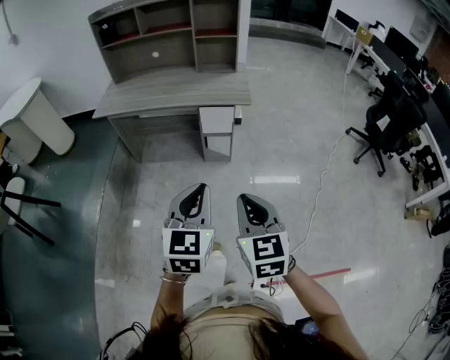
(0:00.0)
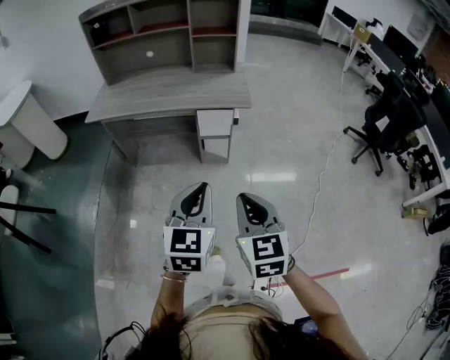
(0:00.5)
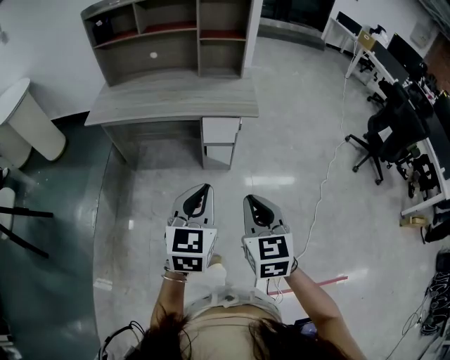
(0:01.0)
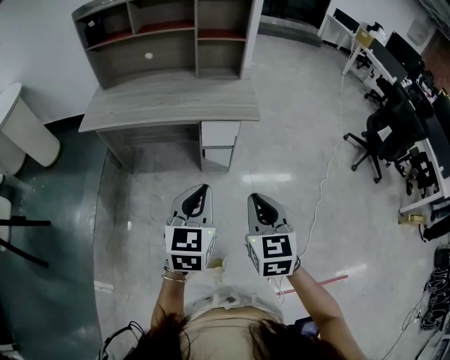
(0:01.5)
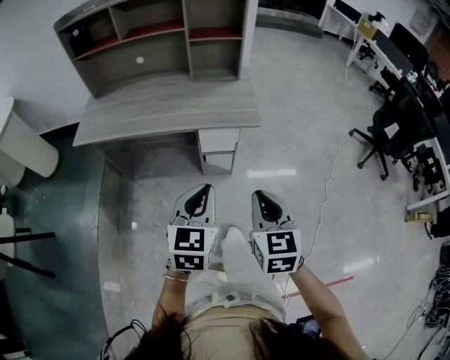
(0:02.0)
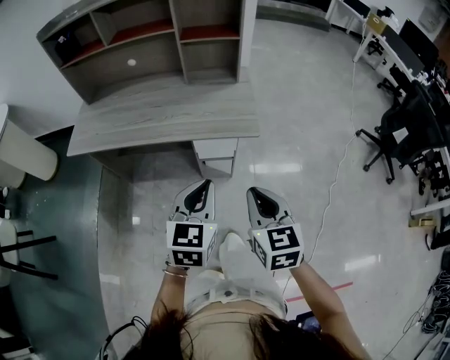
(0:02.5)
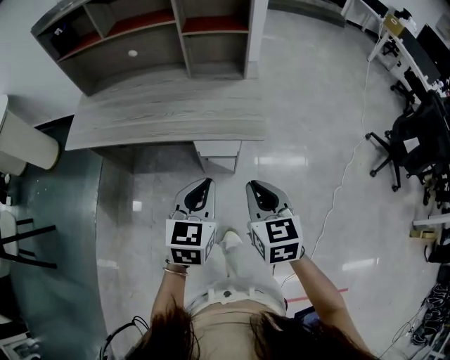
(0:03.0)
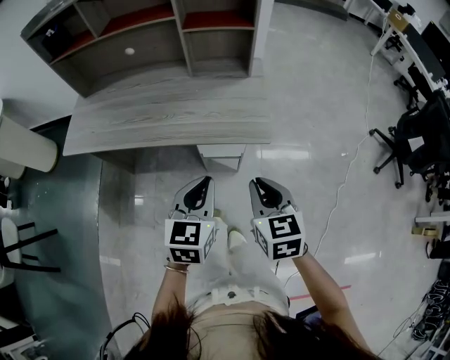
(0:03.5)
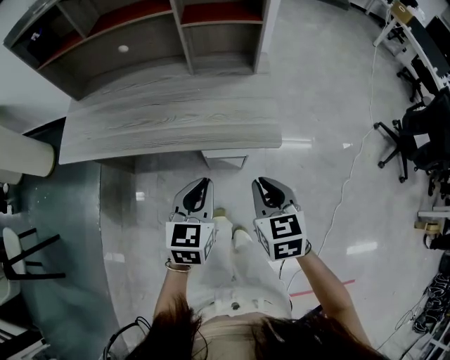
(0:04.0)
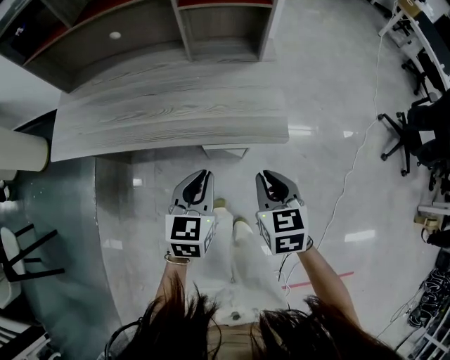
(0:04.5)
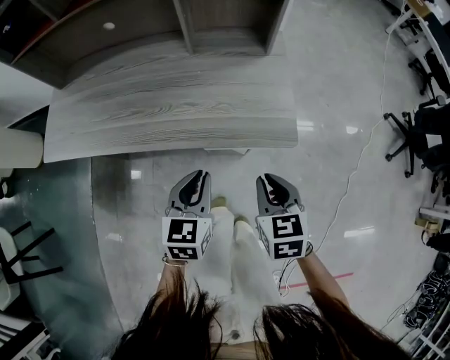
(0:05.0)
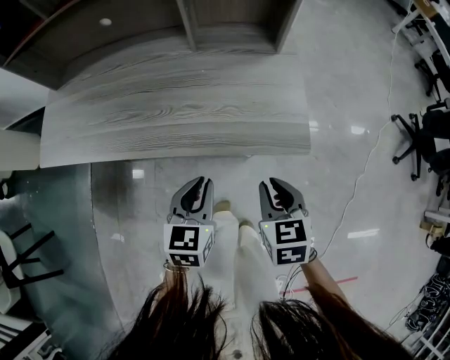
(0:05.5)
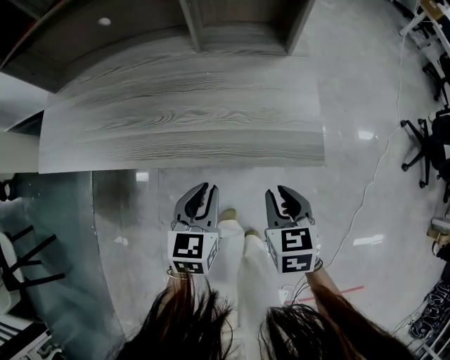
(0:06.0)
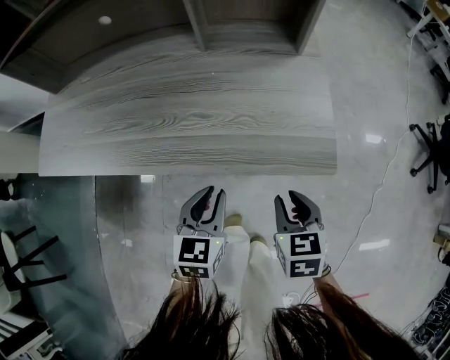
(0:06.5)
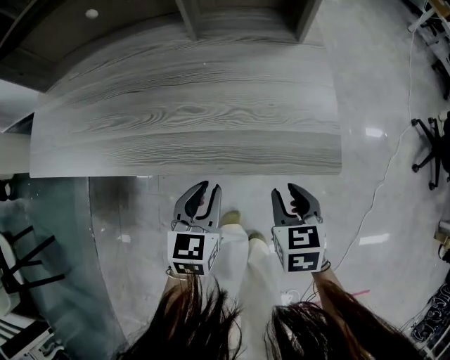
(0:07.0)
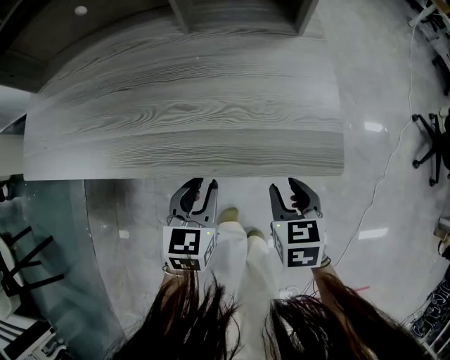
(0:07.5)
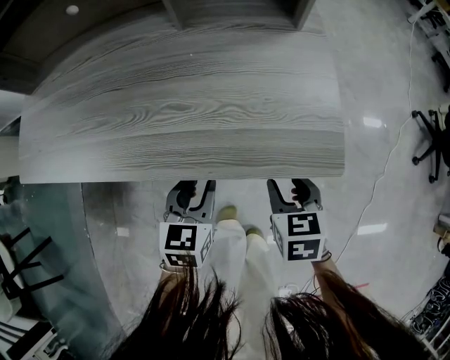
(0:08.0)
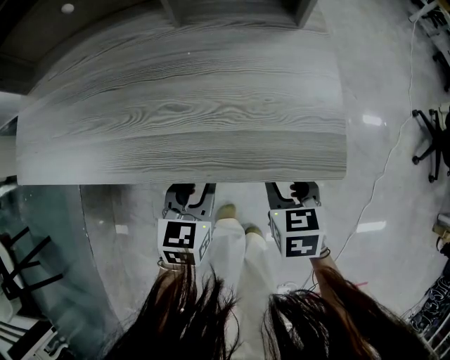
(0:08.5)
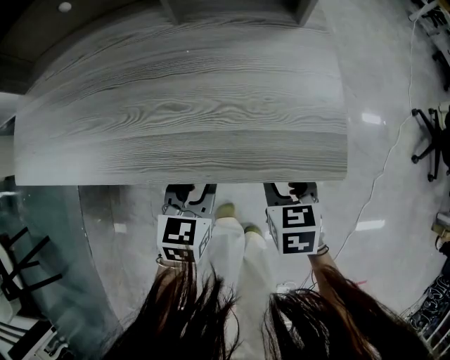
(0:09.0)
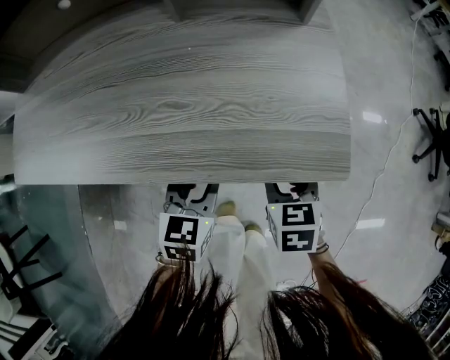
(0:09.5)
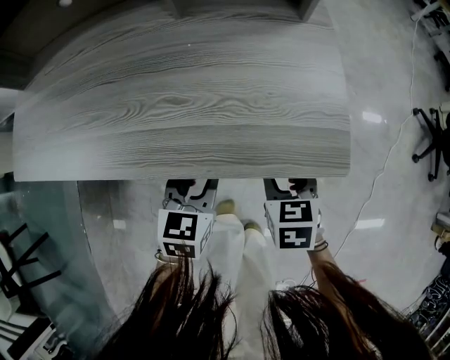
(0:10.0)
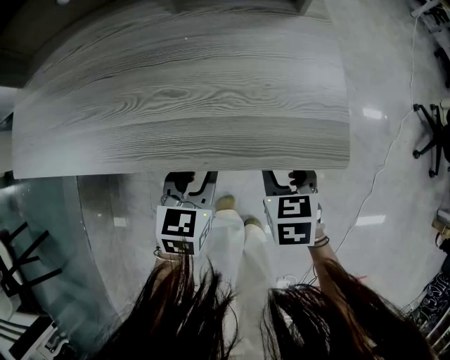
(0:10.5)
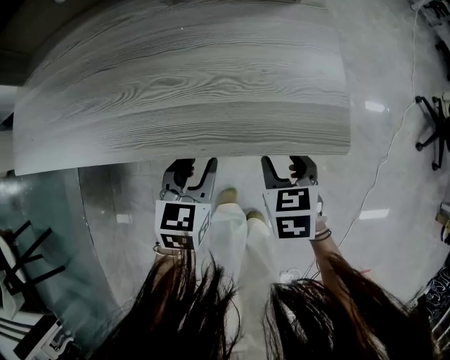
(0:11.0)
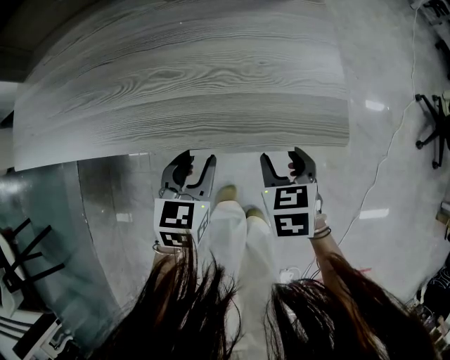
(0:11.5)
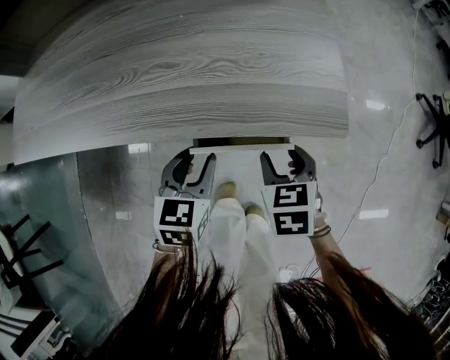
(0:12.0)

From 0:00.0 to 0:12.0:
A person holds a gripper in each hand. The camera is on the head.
From 0:00.0 to 0:02.0: Both grippers move forward, some 25 cm.
From 0:02.0 to 0:04.0: Both grippers move forward, approximately 20 cm.
From 0:04.0 to 0:06.0: The two grippers go some 15 cm downward and forward.
From 0:06.0 to 0:08.0: The right gripper goes approximately 10 cm downward and forward, and opens up, while the left gripper shifts approximately 10 cm downward.
From 0:08.0 to 0:12.0: The grippers stay close to where they were, moving slightly.

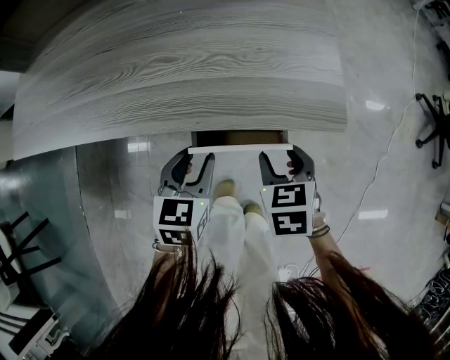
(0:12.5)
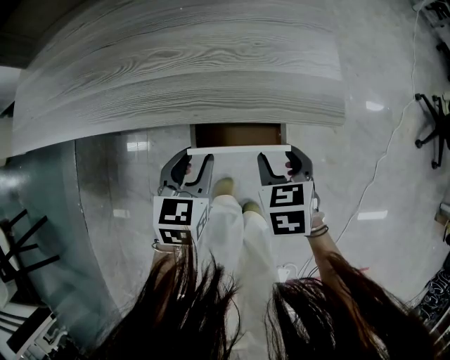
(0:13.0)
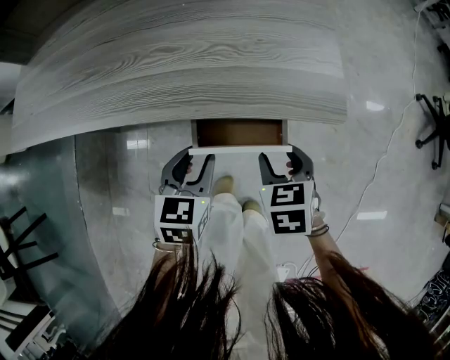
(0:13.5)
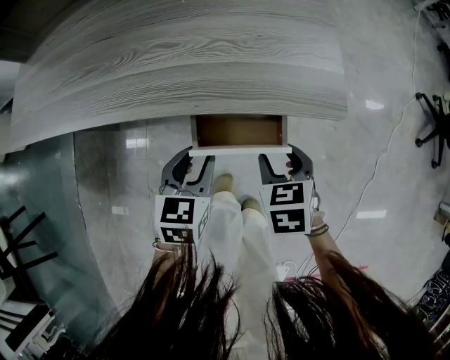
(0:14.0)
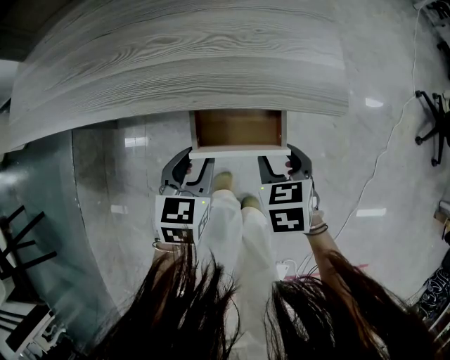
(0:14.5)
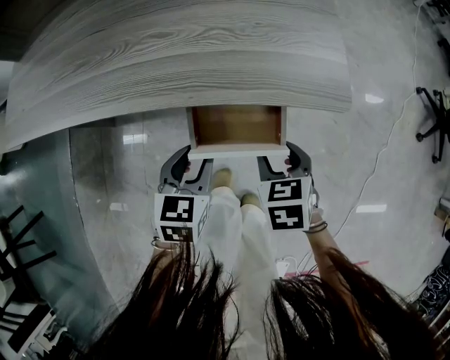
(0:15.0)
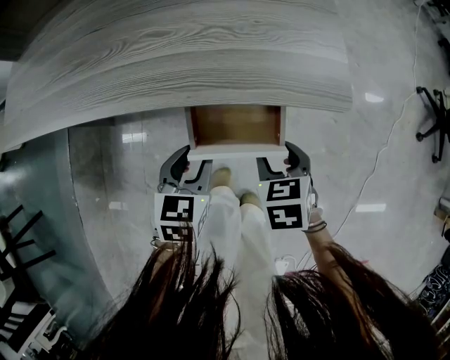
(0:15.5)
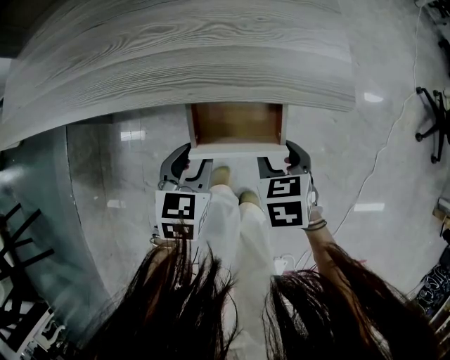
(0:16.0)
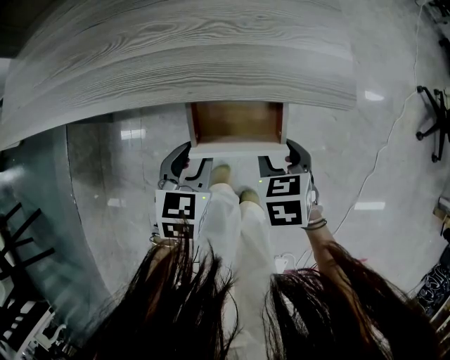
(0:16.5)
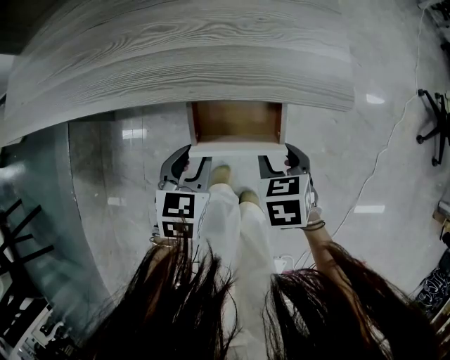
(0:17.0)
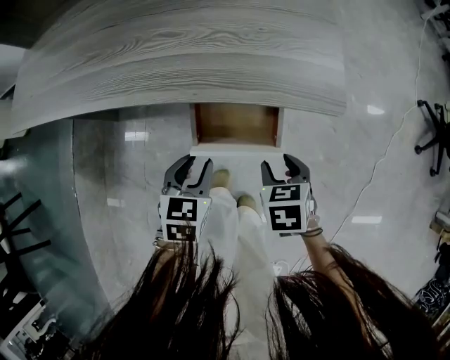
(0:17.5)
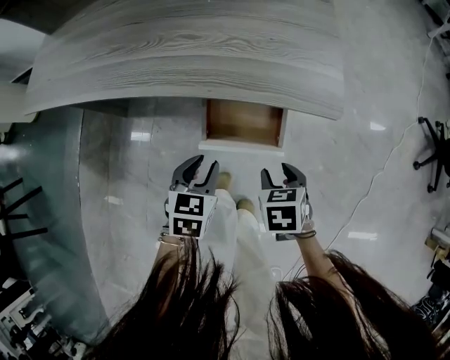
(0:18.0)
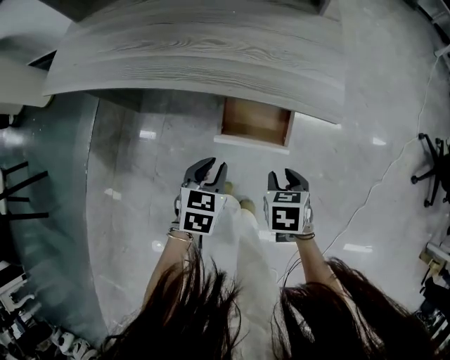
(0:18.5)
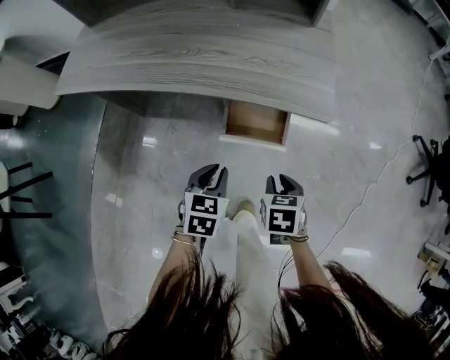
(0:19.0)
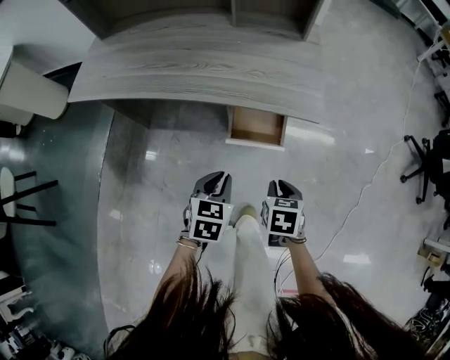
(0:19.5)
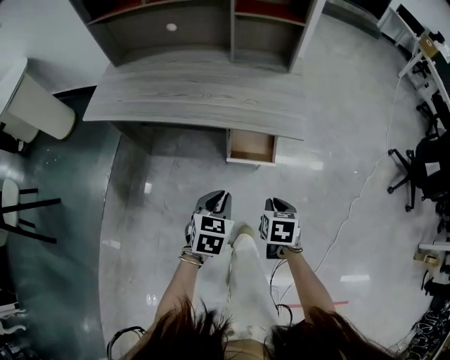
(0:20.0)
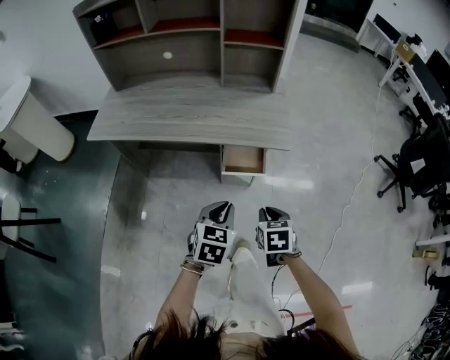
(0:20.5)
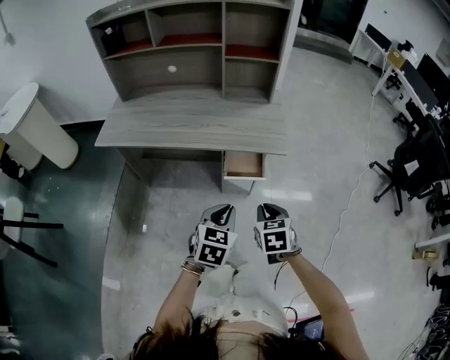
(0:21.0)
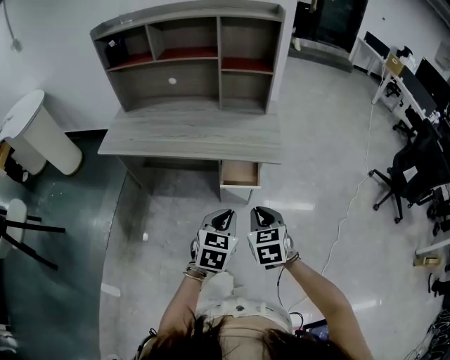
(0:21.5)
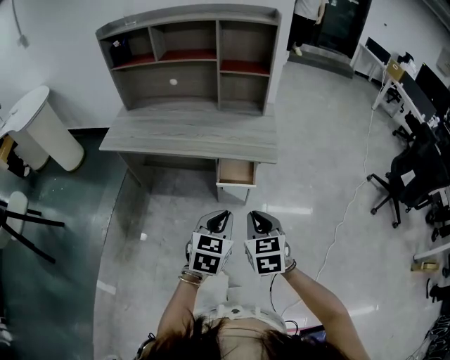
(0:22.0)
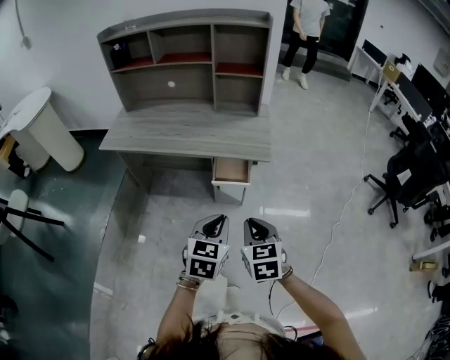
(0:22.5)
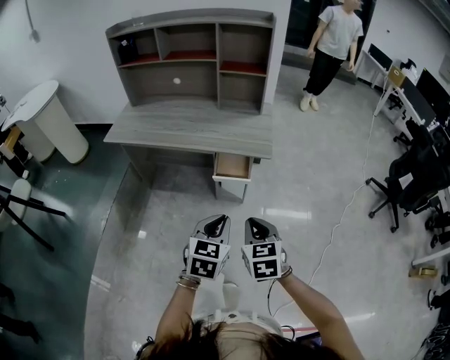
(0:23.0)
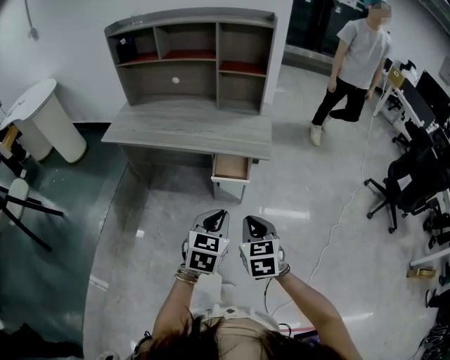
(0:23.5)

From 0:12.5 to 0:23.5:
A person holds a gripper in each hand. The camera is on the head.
From 0:12.5 to 0:14.5: There are only small adjustments of the grippers.
From 0:14.5 to 0:18.0: There are only small adjustments of the grippers.
From 0:18.0 to 0:20.0: The grippers both shift upward and backward by some 20 cm. The left gripper closes; the right gripper closes.
From 0:20.0 to 0:21.5: The right gripper moves upward, roughly 15 cm, and rotates roughly 30 degrees. The left gripper travels upward and backward by approximately 15 cm.
From 0:21.5 to 0:23.5: The grippers both shift backward by roughly 10 cm.

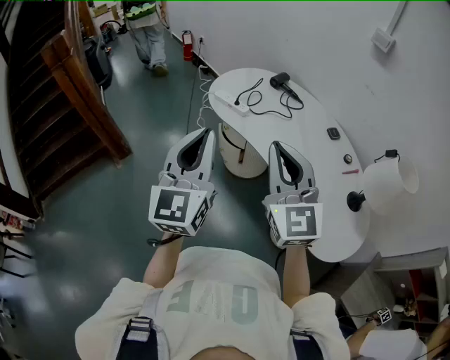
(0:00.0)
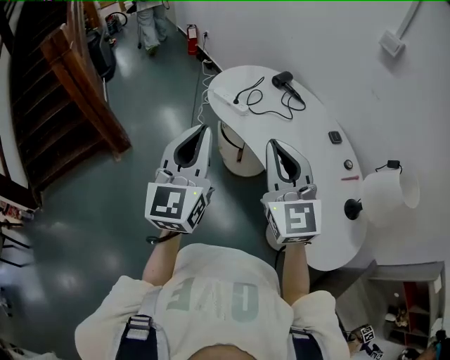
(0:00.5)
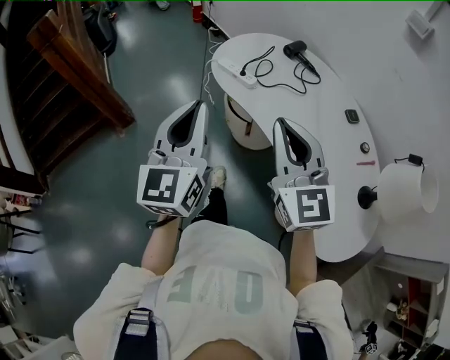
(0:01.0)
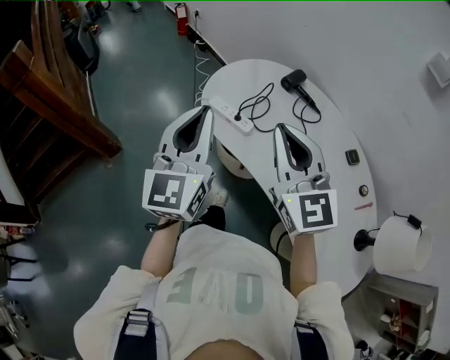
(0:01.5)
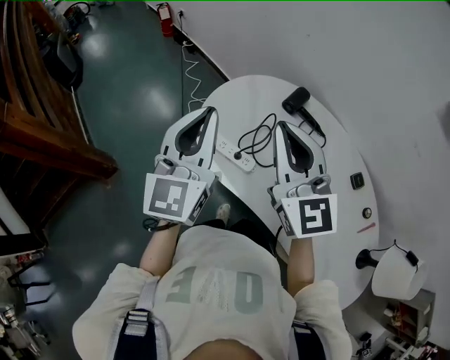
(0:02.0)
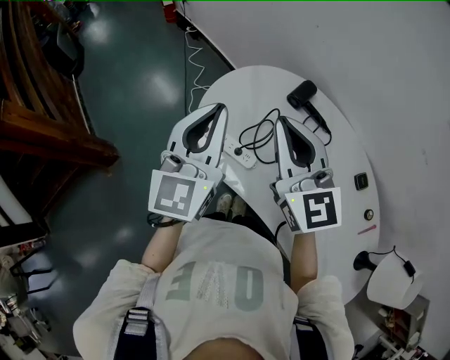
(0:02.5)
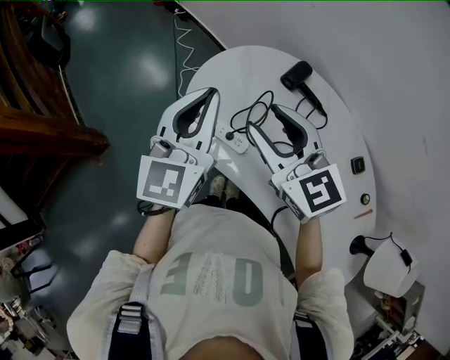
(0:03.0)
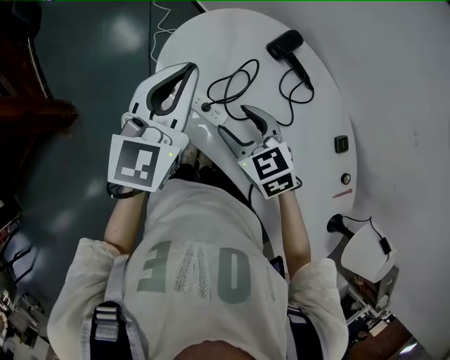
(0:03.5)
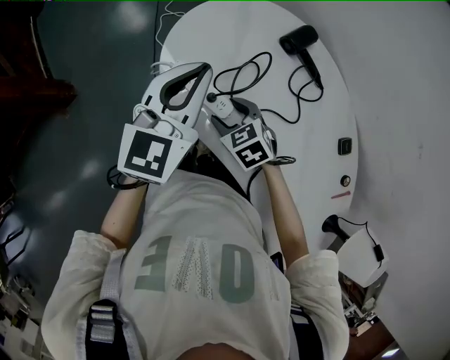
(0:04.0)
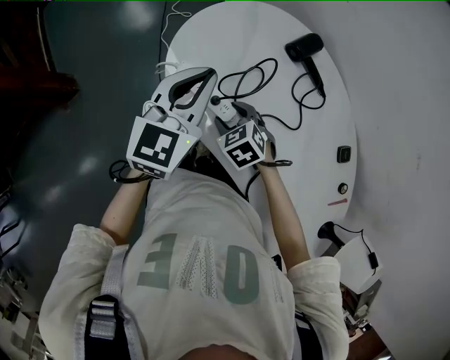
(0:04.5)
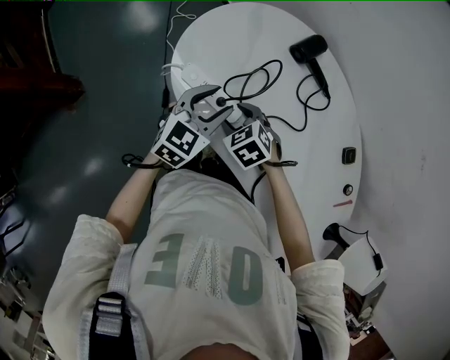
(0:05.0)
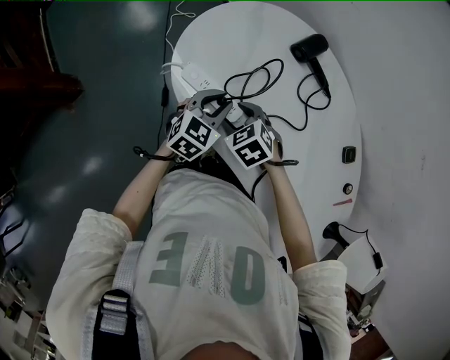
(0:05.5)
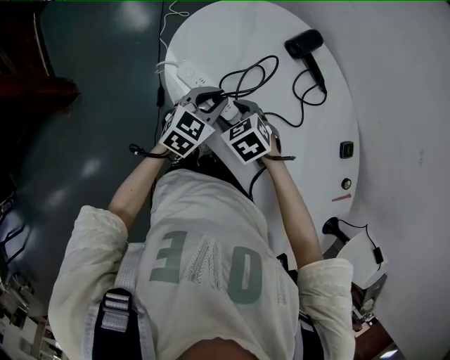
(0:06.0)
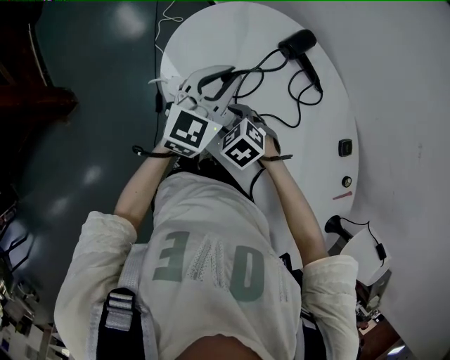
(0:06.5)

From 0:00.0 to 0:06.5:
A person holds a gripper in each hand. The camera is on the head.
From 0:00.0 to 0:02.0: The two grippers travel together, forward, roughly 40 cm.
From 0:02.0 to 0:04.5: The right gripper shifts roughly 35 cm downward, tilts its fingers some 60 degrees downward, and opens up; the left gripper is displaced downward by about 15 cm, and swivels some 20 degrees.
From 0:04.5 to 0:06.5: The left gripper shifts roughly 5 cm to the right, moves approximately 15 cm downward and comes back, and opens, then closes once more.
